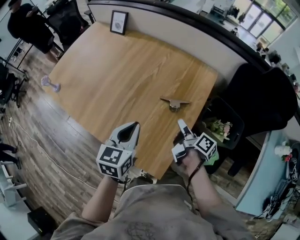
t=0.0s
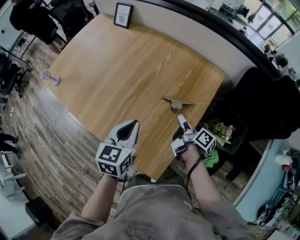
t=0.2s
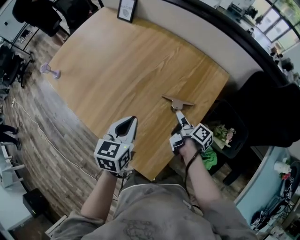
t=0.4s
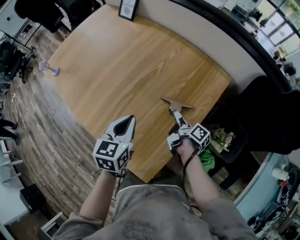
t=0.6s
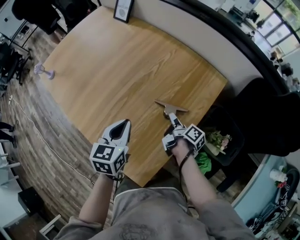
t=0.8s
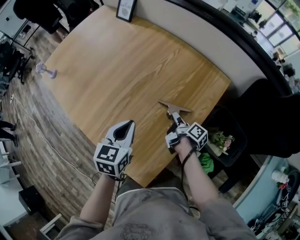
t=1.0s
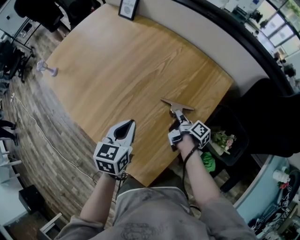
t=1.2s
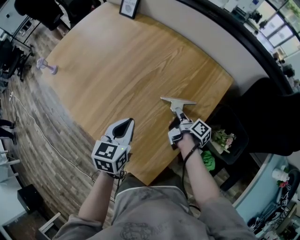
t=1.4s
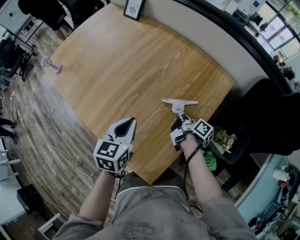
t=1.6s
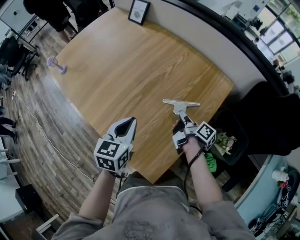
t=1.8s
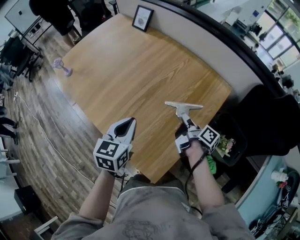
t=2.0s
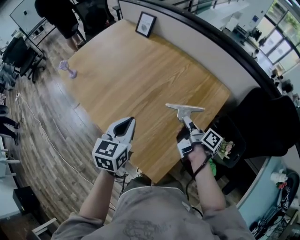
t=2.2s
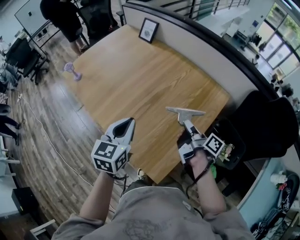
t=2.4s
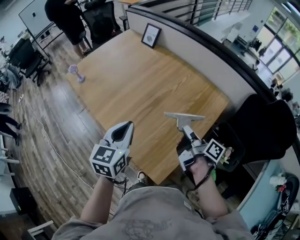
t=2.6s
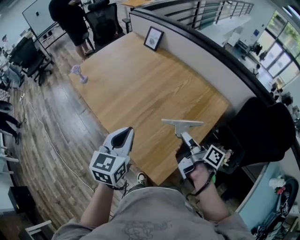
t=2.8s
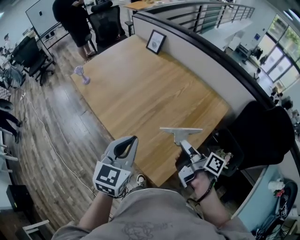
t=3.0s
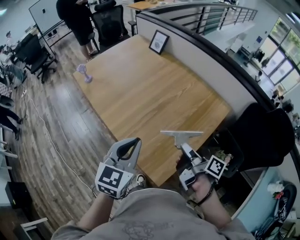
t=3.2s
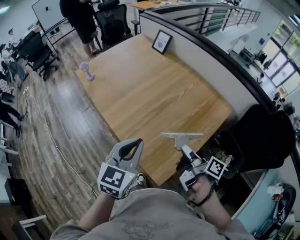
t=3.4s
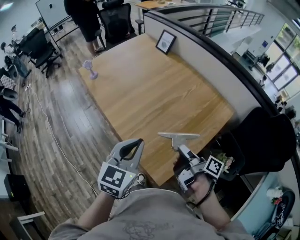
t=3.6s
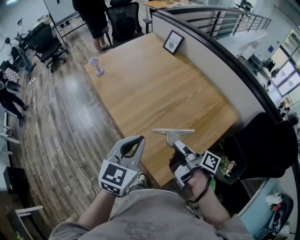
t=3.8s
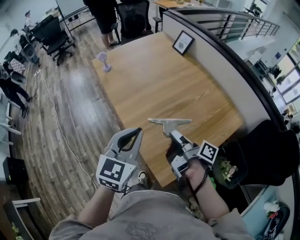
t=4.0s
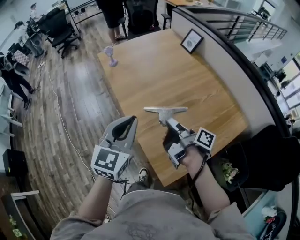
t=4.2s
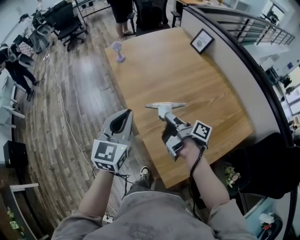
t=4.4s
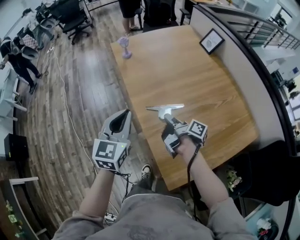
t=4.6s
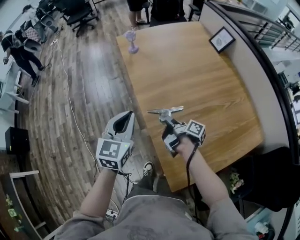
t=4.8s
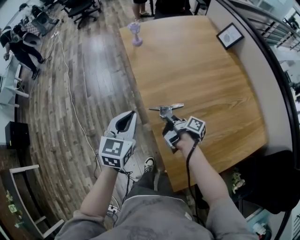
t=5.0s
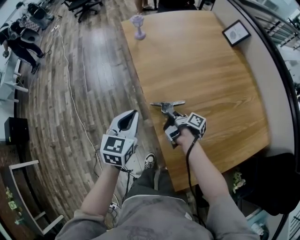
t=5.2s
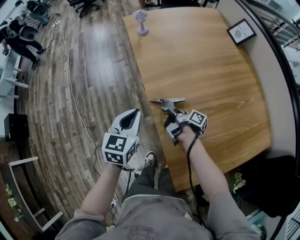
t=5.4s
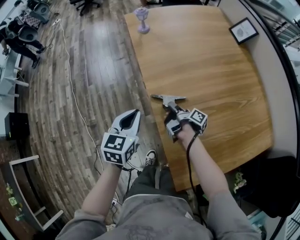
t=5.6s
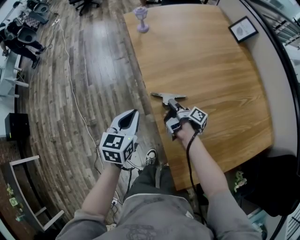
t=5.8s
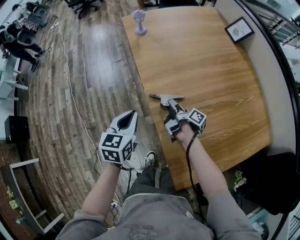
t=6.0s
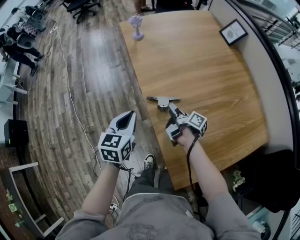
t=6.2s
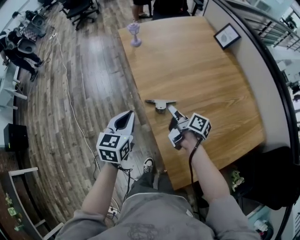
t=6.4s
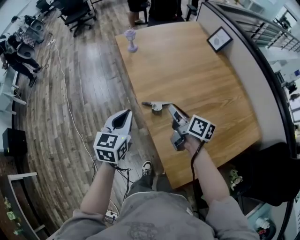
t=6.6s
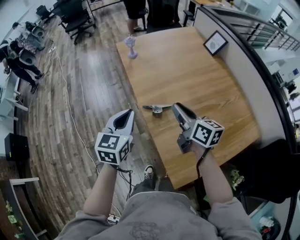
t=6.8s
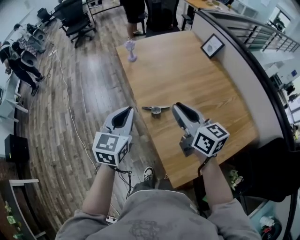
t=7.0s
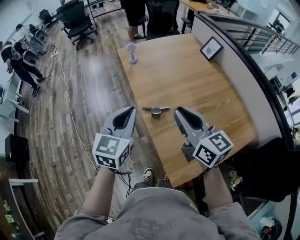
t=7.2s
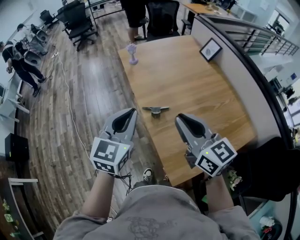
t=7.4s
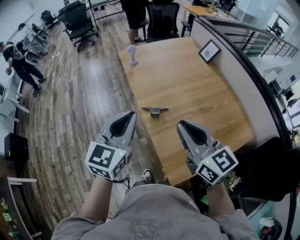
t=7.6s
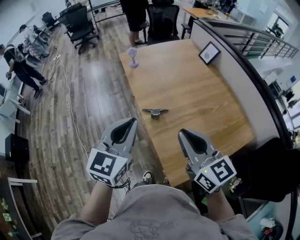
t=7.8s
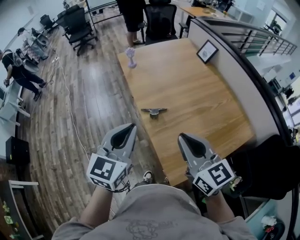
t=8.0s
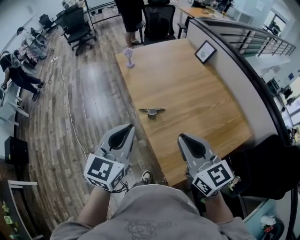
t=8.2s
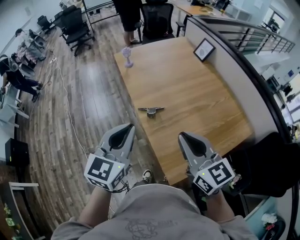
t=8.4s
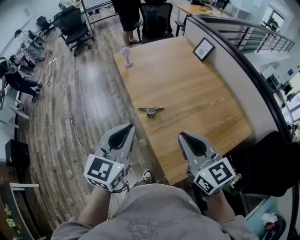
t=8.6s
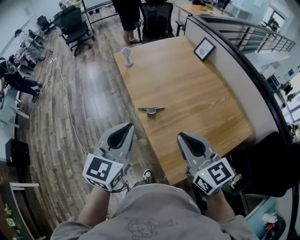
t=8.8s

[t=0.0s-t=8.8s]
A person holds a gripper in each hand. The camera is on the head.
t=0.0s to t=1.4s: The left gripper shifts about 10 cm downward. The right gripper is displaced downward and forward by roughly 15 cm, and closes up.
t=1.4s to t=3.0s: Both grippers travel together upward and backward, some 25 cm.
t=3.0s to t=4.4s: Both grippers travel together to the left and forward, about 20 cm. The left gripper turns by some 20 degrees, while the right gripper swivels approximately 20 degrees.
t=4.4s to t=5.8s: The right gripper travels downward and forward by roughly 25 cm. Meanwhile the left gripper moves downward and to the left, approximately 20 cm, and turns by about 30 degrees.
t=5.8s to t=7.4s: The left gripper moves upward, roughly 25 cm, and changes its angle by roughly 30 degrees, while the right gripper moves upward and backward, about 40 cm, twists approximately 90 degrees counterclockwise, seen from behind, and opens and closes again.
t=7.4s to t=8.8s: Both grippers travel together backward, approximately 5 cm.

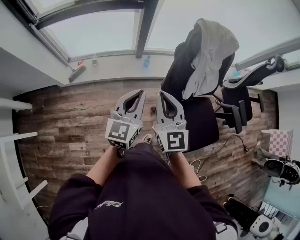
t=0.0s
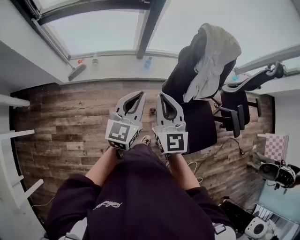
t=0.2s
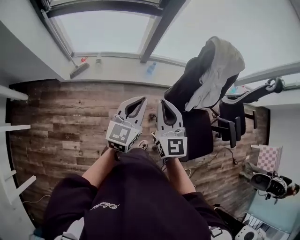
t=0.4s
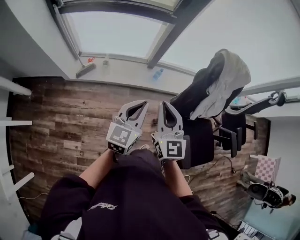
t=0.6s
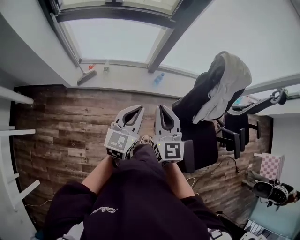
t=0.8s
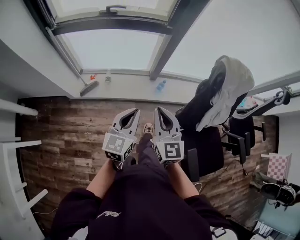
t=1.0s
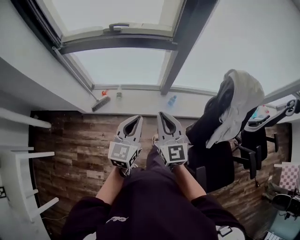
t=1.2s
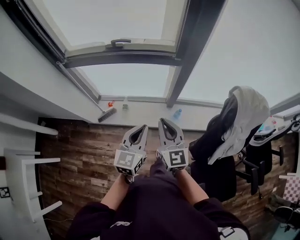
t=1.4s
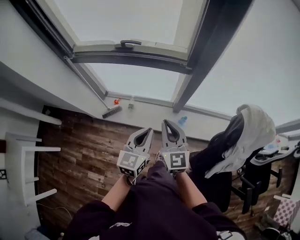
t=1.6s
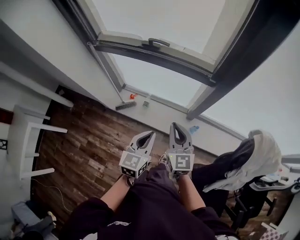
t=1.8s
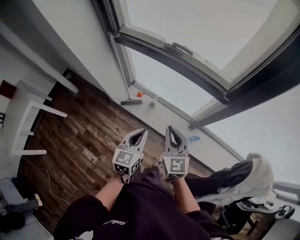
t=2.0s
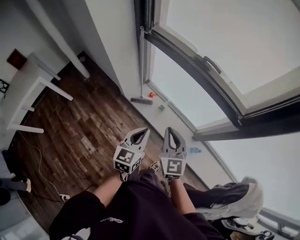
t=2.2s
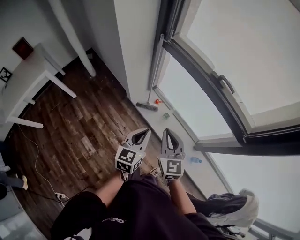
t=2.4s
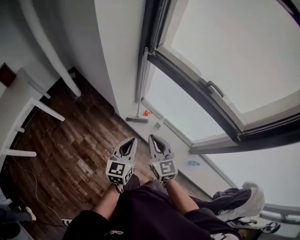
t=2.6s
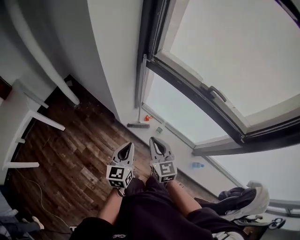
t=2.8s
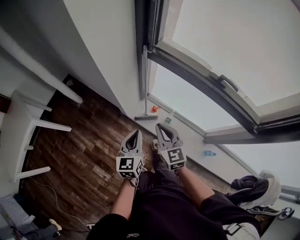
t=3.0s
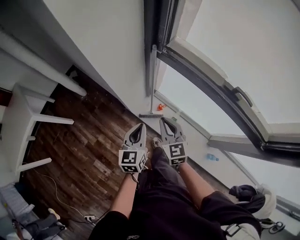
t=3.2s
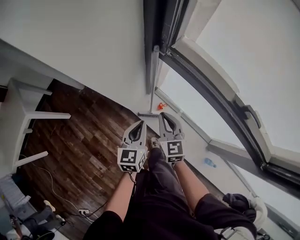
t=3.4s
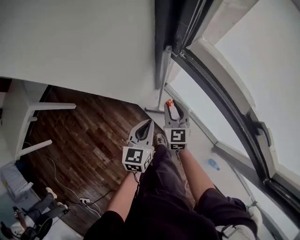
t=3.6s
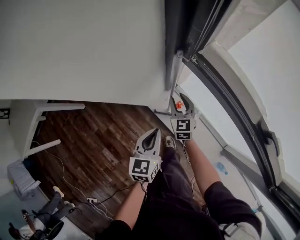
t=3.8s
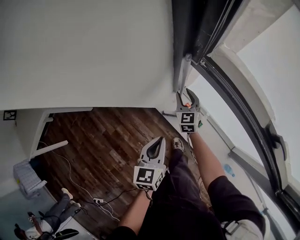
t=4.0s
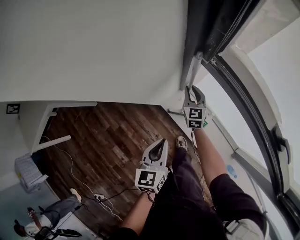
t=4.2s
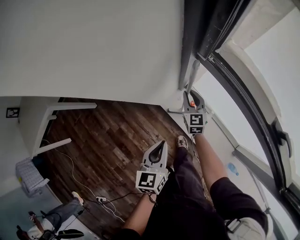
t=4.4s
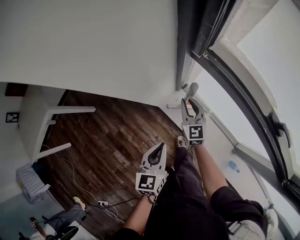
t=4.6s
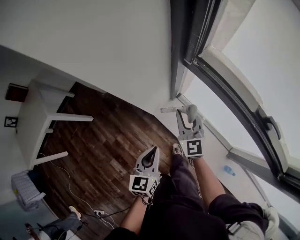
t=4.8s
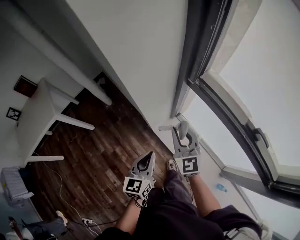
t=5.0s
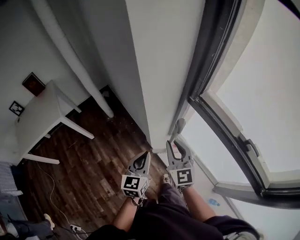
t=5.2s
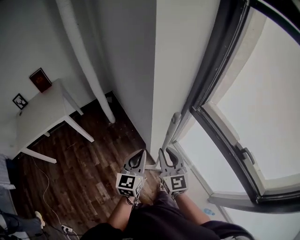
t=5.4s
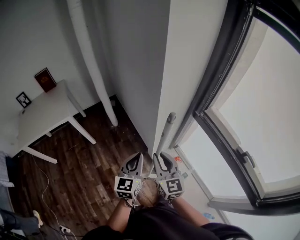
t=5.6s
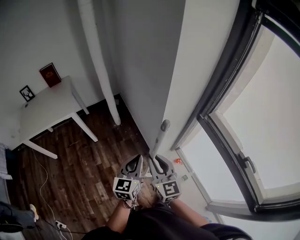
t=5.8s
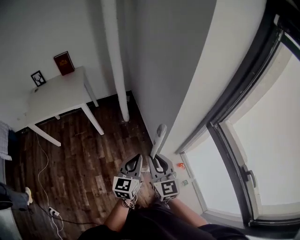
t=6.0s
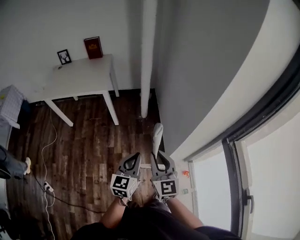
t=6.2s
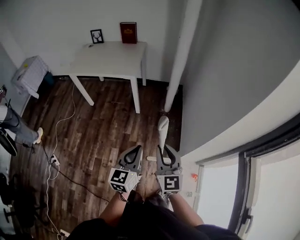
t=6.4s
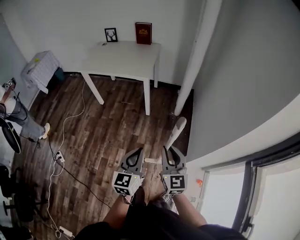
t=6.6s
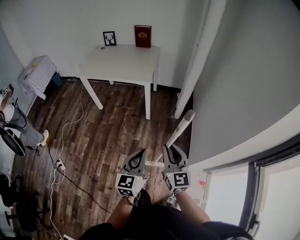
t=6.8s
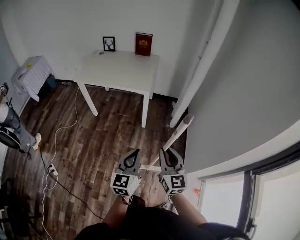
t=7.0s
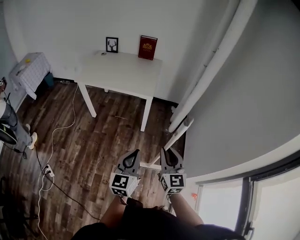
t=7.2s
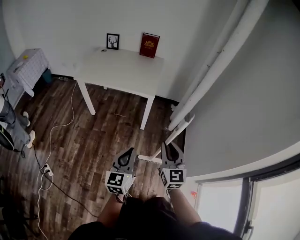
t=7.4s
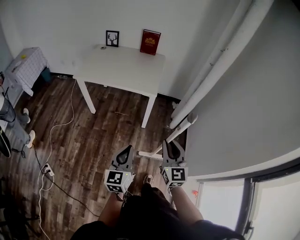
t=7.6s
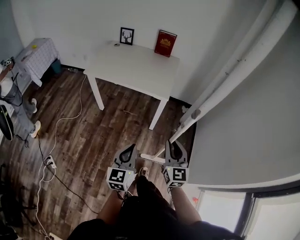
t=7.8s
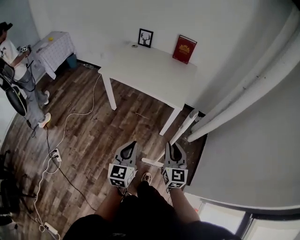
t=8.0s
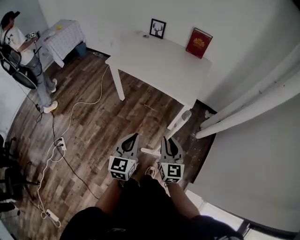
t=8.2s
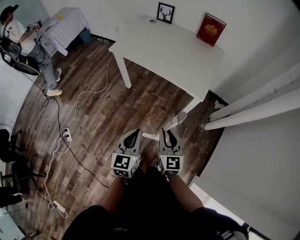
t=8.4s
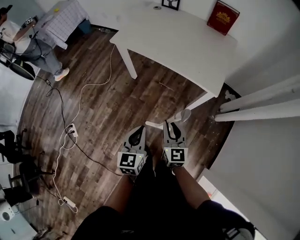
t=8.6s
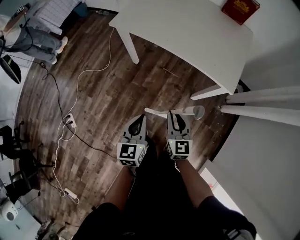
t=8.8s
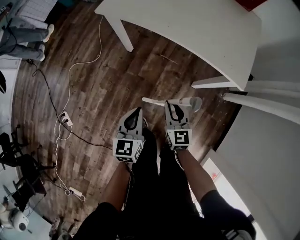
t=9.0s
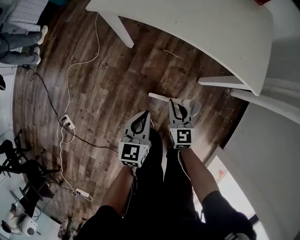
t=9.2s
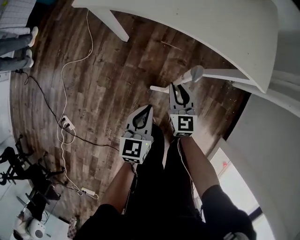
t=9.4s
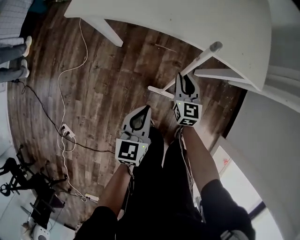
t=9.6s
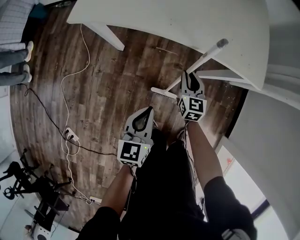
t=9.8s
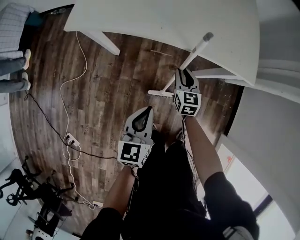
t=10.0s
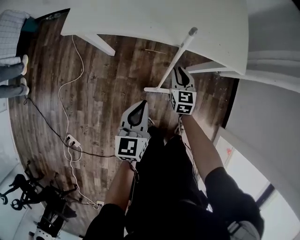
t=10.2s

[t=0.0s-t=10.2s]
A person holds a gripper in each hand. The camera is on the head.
t=0.0s to t=1.4s: The two grippers go roughly 30 cm forward and to the left.
t=1.4s to t=3.0s: The two grippers travel together, roughly 50 cm. The left gripper changes its angle by approximately 40 degrees; the right gripper turns by roughly 40 degrees.
t=3.0s to t=4.4s: The right gripper heads forward and downward, covering approximately 40 cm; the left gripper heads forward and downward, covering approximately 15 cm.
t=4.4s to t=5.8s: The right gripper is displaced upward, backward and to the left by approximately 50 cm, and changes its angle by roughly 30 degrees. The left gripper travels upward and to the left by about 25 cm, and swivels roughly 30 degrees.
t=5.8s to t=7.2s: The left gripper changes place by approximately 40 cm, and turns by about 40 degrees. The right gripper moves some 35 cm, and rotates approximately 30 degrees.
t=7.2s to t=8.8s: The grippers both shift forward, to the left and downward by about 50 cm. The left gripper rotates roughly 30 degrees. Meanwhile the right gripper swivels approximately 20 degrees.
t=8.8s to t=10.2s: The left gripper moves forward and downward, roughly 15 cm, and swivels about 20 degrees, while the right gripper is displaced forward and downward by roughly 25 cm, and rotates some 30 degrees.

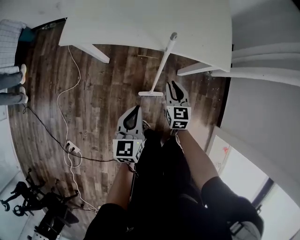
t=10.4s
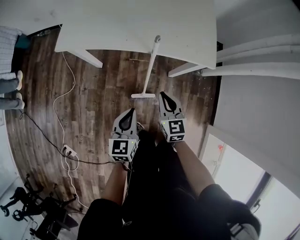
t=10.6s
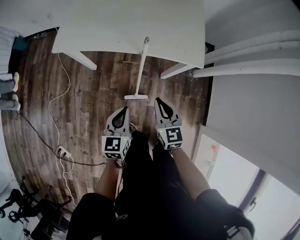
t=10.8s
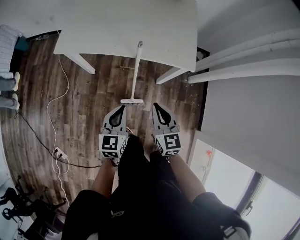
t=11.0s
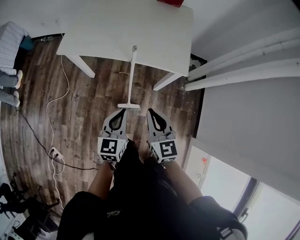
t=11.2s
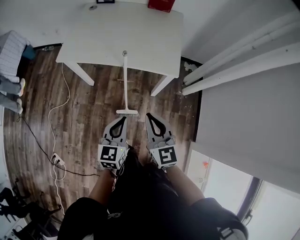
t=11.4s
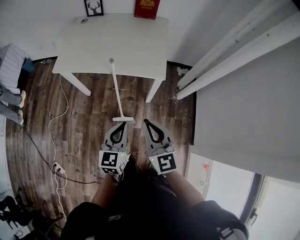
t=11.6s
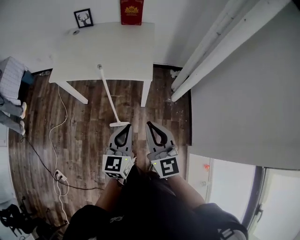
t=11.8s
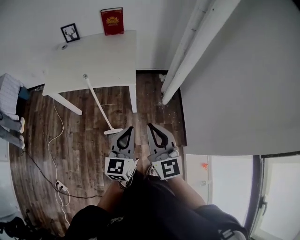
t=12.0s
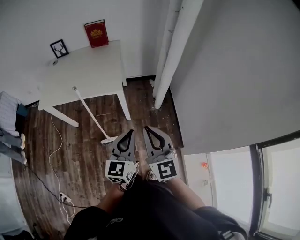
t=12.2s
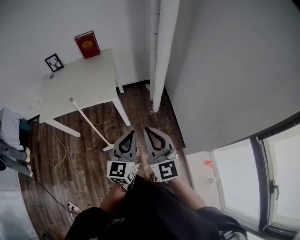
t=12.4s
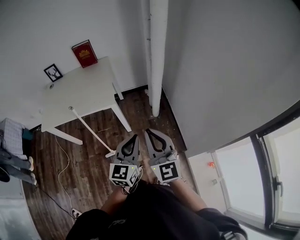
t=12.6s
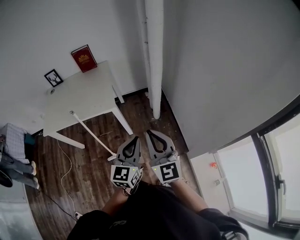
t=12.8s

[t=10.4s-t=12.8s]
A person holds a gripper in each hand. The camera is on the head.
t=10.4s to t=11.6s: The right gripper goes some 40 cm upward and backward, and swivels some 30 degrees; the left gripper shifts approximately 25 cm to the right, upward and backward.
t=11.6s to t=12.8s: Both grippers move to the right, about 30 cm. The left gripper rotates approximately 30 degrees; the right gripper turns by roughly 20 degrees.

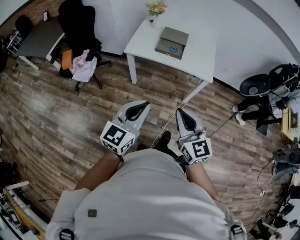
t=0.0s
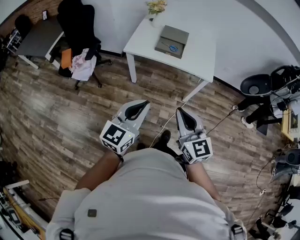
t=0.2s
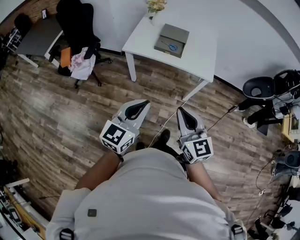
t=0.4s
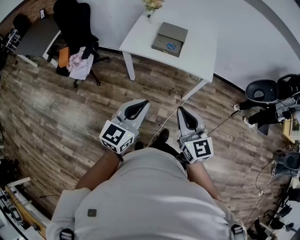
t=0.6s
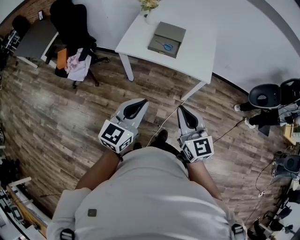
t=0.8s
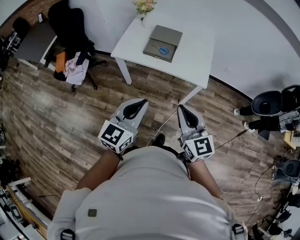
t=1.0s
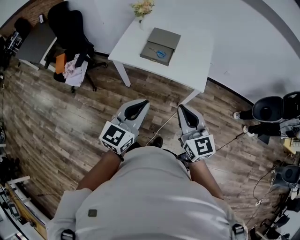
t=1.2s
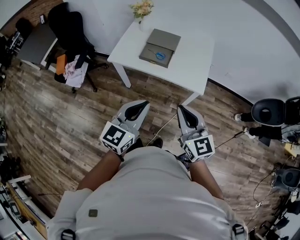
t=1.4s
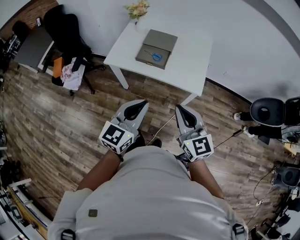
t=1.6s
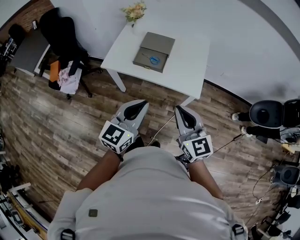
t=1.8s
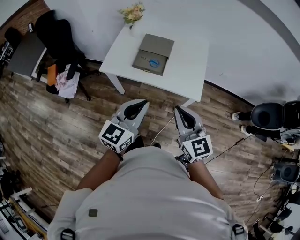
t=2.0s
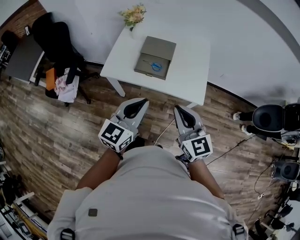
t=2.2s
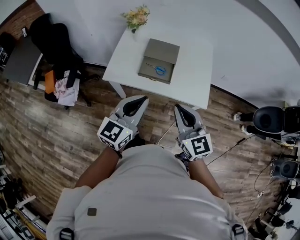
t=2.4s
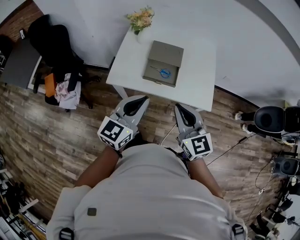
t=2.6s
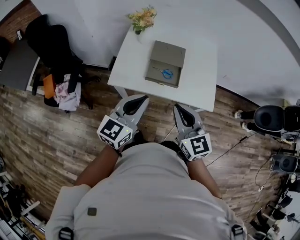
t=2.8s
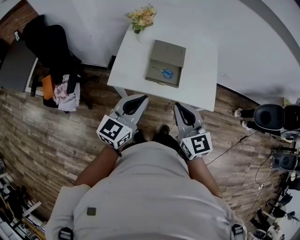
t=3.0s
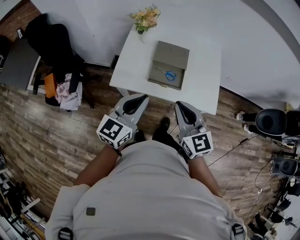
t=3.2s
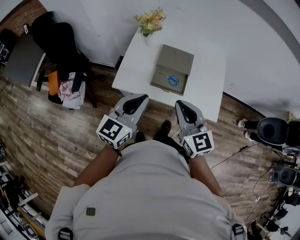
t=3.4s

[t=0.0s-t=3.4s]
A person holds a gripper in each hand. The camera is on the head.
t=0.0s to t=1.6s: The two grippers go about 25 cm forward and to the right.
t=1.6s to t=3.4s: Both grippers move forward and to the left, approximately 30 cm.
